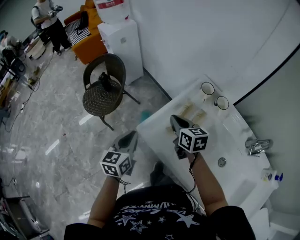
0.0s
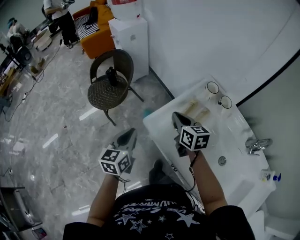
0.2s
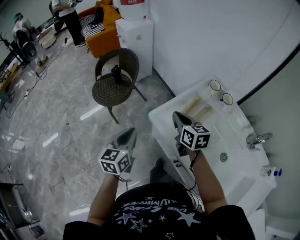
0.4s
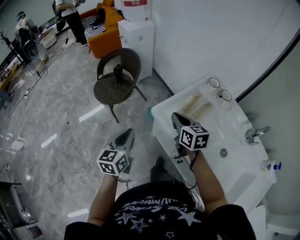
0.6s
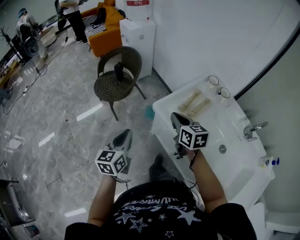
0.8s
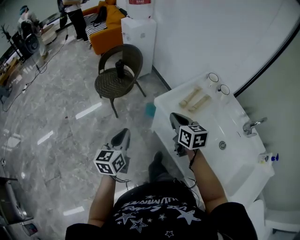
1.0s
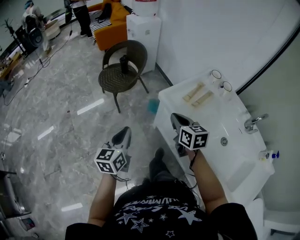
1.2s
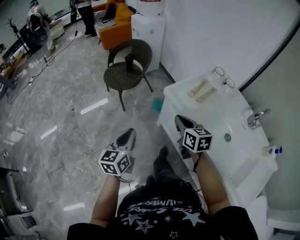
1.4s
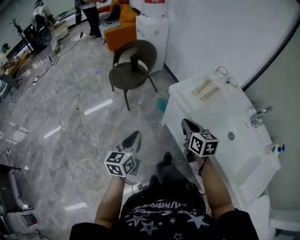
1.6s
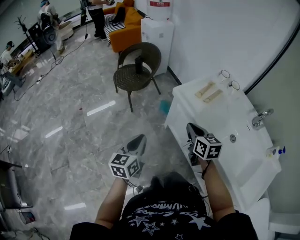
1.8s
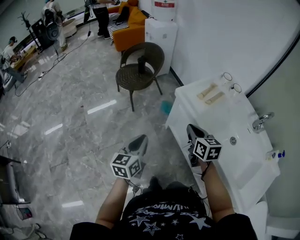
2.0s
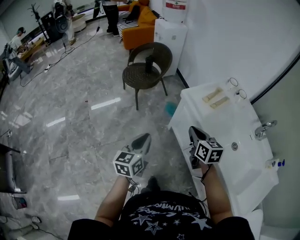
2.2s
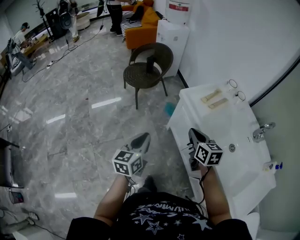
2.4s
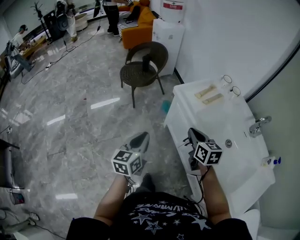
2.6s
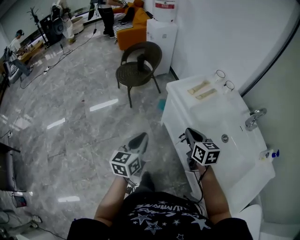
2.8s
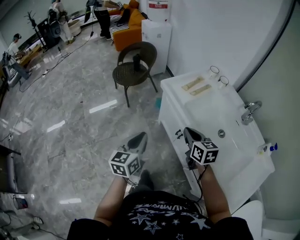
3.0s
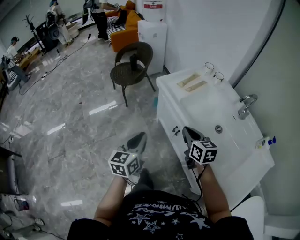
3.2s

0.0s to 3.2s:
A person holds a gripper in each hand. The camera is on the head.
0.0s to 1.6s: The grippers both shift backward and to the left by roughly 30 cm.
1.6s to 3.2s: The left gripper moves to the right and backward, approximately 20 cm; the right gripper heads backward and to the right, covering approximately 20 cm.

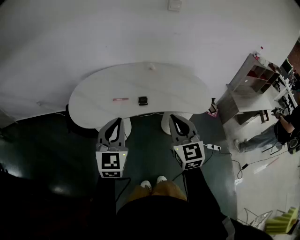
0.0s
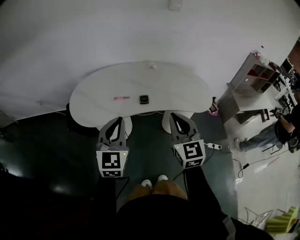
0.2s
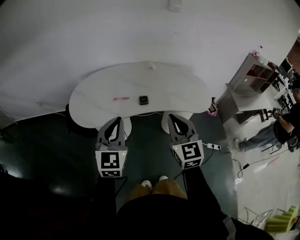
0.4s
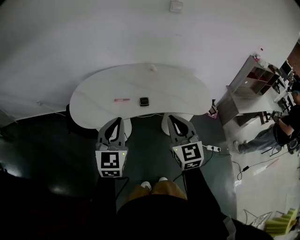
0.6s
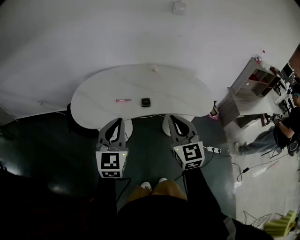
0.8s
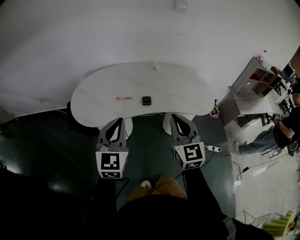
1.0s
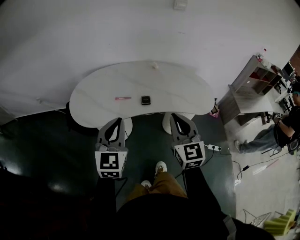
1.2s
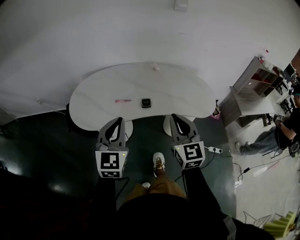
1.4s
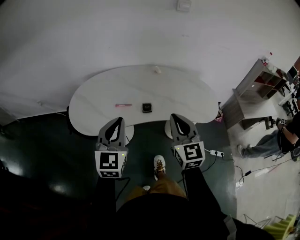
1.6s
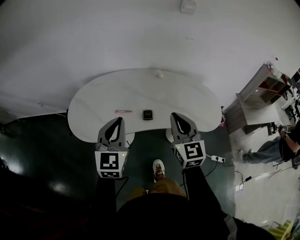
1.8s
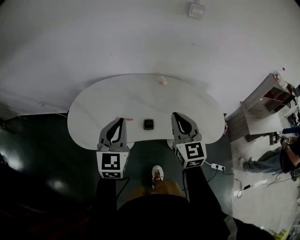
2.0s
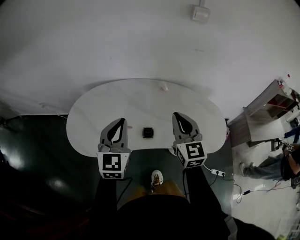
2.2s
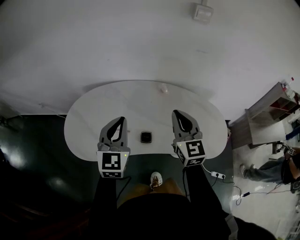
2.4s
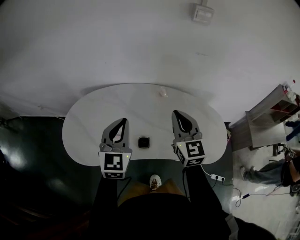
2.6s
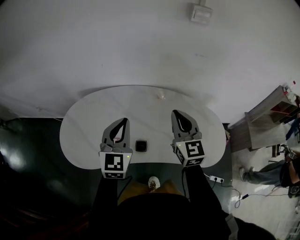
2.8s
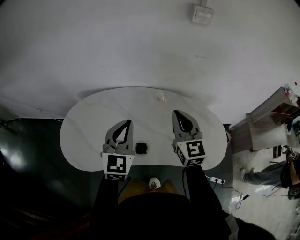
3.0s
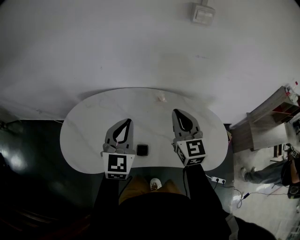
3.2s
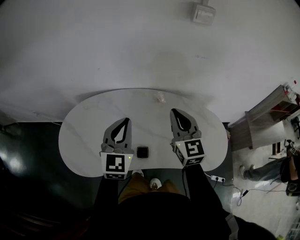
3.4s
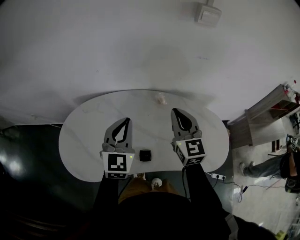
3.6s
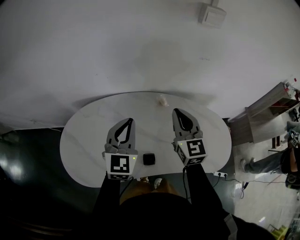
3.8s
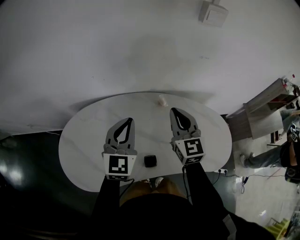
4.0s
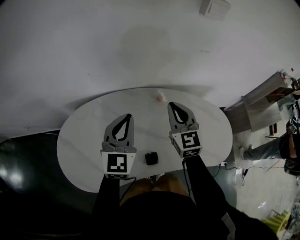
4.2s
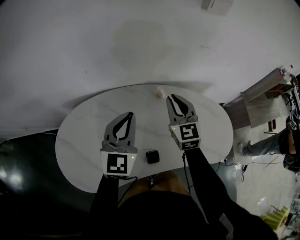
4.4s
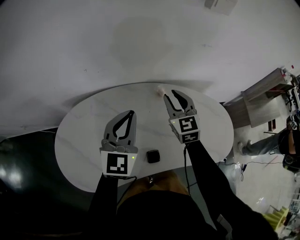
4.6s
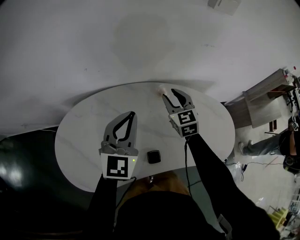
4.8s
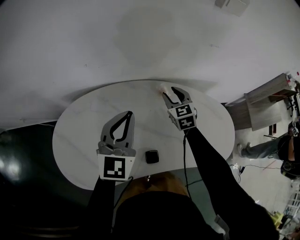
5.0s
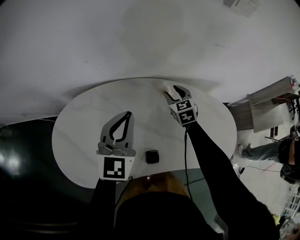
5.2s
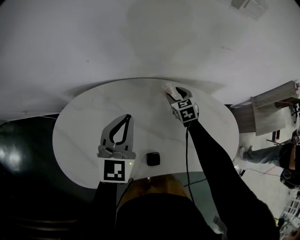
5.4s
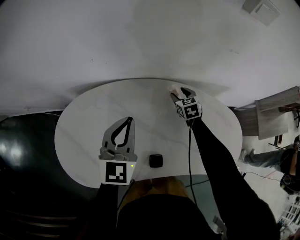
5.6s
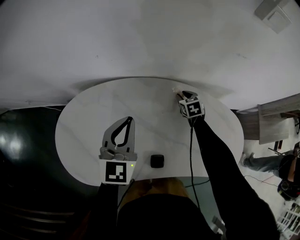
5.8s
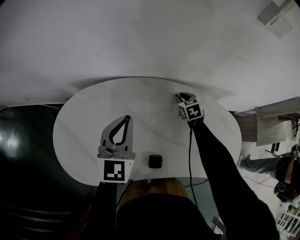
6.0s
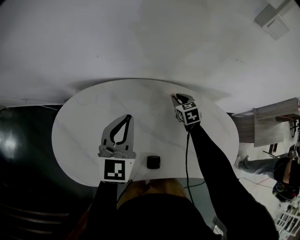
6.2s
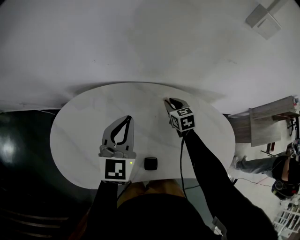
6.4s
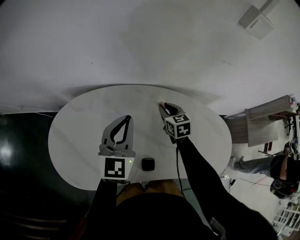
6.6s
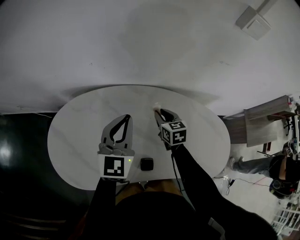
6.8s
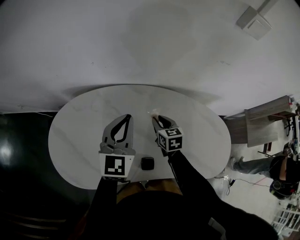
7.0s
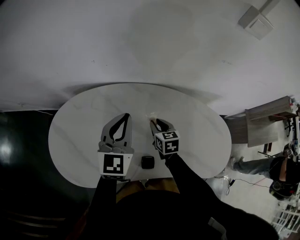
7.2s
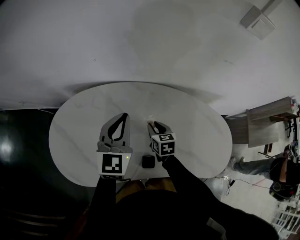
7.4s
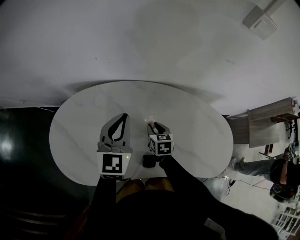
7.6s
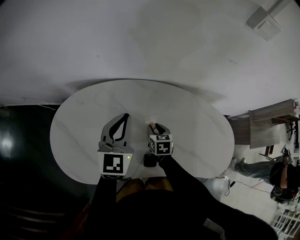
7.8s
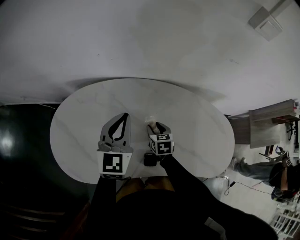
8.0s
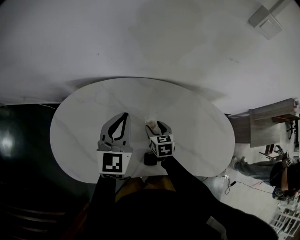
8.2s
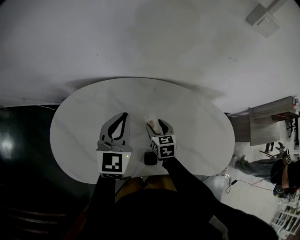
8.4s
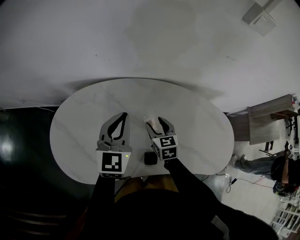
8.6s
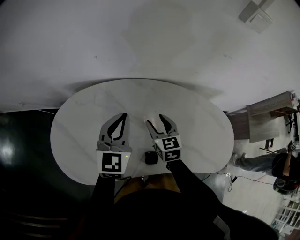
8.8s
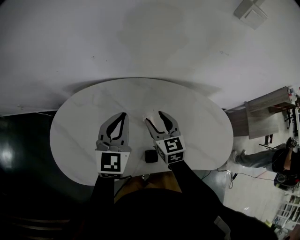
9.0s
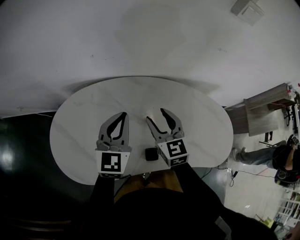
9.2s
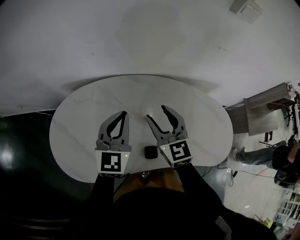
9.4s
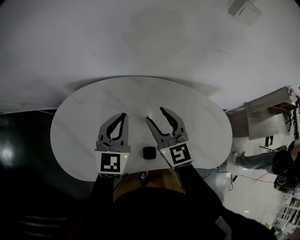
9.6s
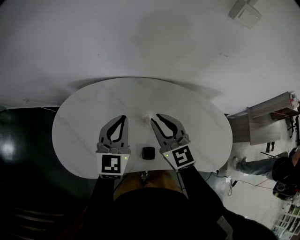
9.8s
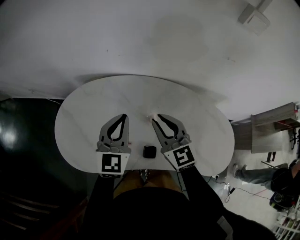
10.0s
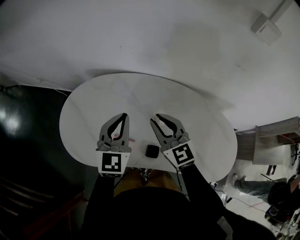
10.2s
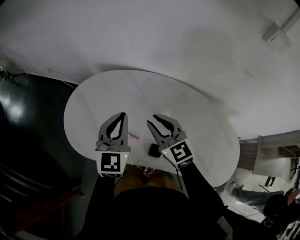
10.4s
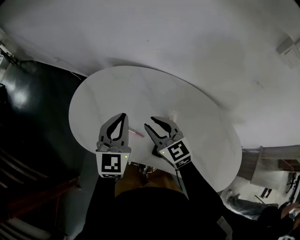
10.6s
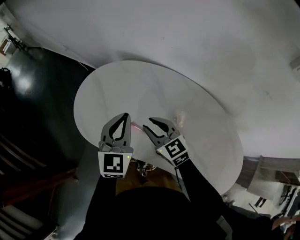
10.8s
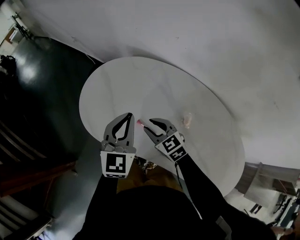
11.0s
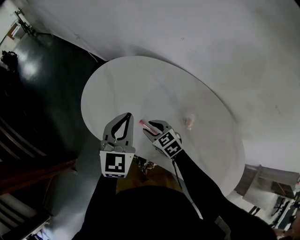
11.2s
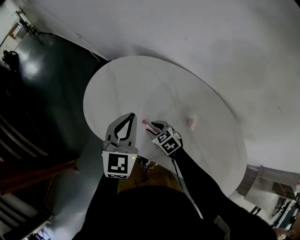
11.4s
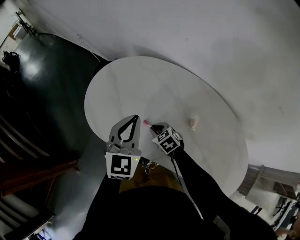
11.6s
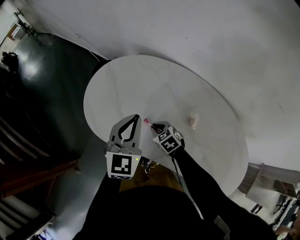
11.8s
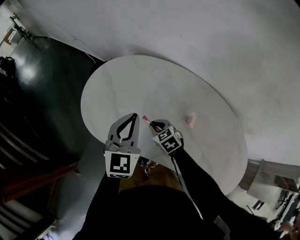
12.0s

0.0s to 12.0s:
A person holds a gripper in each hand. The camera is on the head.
0.0s to 1.6s: The two grippers go about 5 cm forward.
1.6s to 3.0s: Both grippers move forward, roughly 25 cm.
3.0s to 4.4s: The right gripper shifts approximately 15 cm forward, downward and to the left, while the left gripper travels forward by roughly 10 cm.
4.4s to 6.0s: The right gripper shifts about 30 cm downward and forward, points its fingers some 40 degrees further downward, and opens, then closes once more, while the left gripper is displaced downward and to the left by about 10 cm.
6.0s to 7.6s: The right gripper moves backward and to the left, roughly 20 cm.
7.6s to 9.0s: The right gripper shifts approximately 15 cm upward, and rotates some 20 degrees.
9.0s to 10.4s: The left gripper shifts by some 10 cm, and changes its angle by approximately 20 degrees. The right gripper shifts by roughly 10 cm, rotates about 40 degrees, and closes up.
10.4s to 12.0s: The right gripper travels downward and to the left by approximately 25 cm, and tips its fingers downward by roughly 30 degrees; the left gripper goes roughly 10 cm to the left.

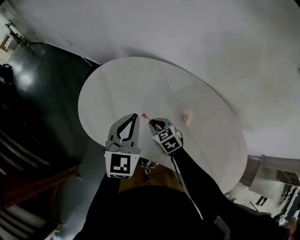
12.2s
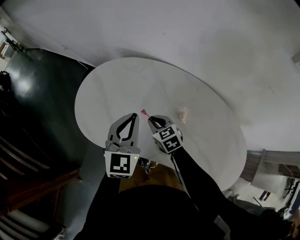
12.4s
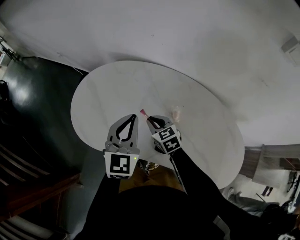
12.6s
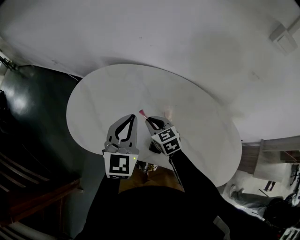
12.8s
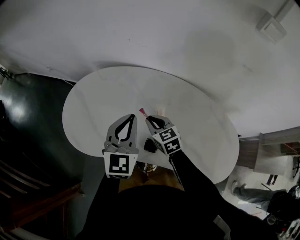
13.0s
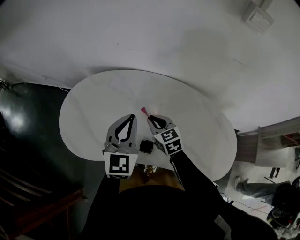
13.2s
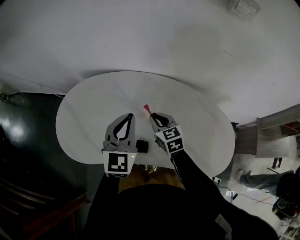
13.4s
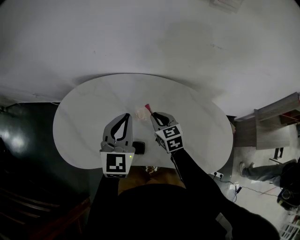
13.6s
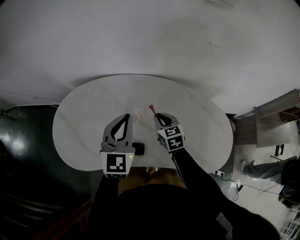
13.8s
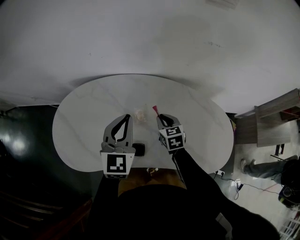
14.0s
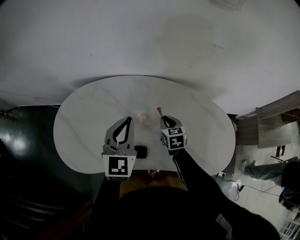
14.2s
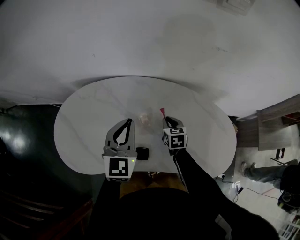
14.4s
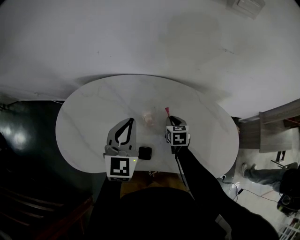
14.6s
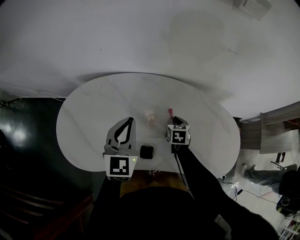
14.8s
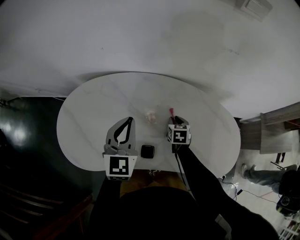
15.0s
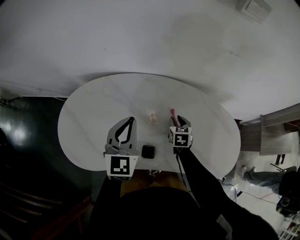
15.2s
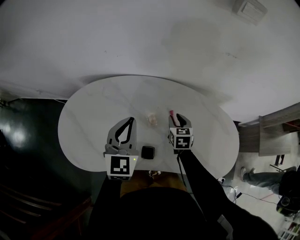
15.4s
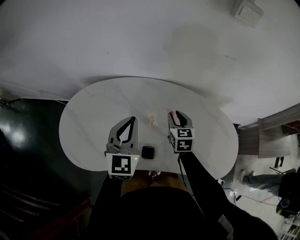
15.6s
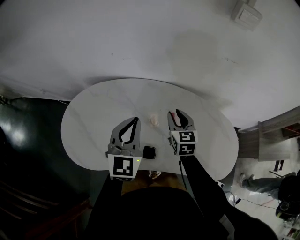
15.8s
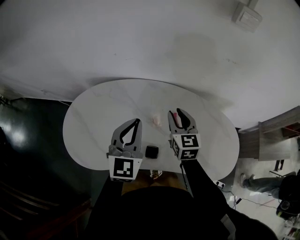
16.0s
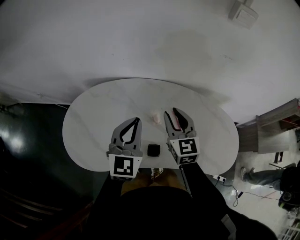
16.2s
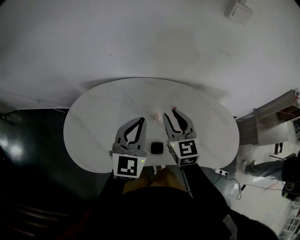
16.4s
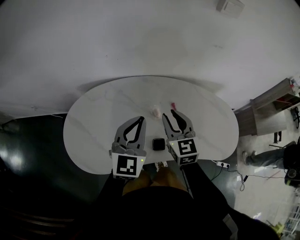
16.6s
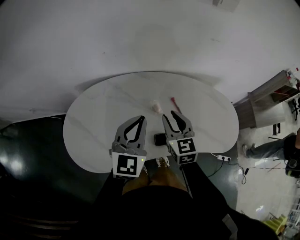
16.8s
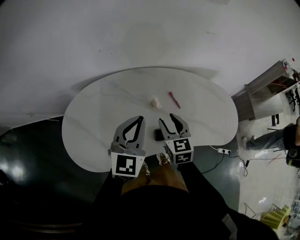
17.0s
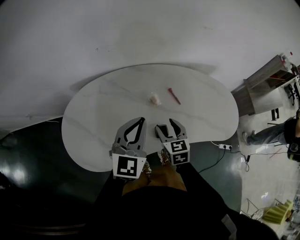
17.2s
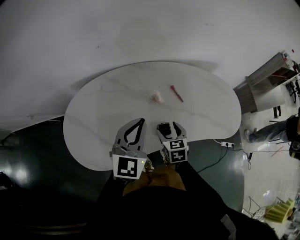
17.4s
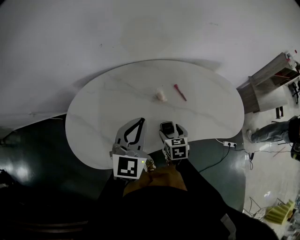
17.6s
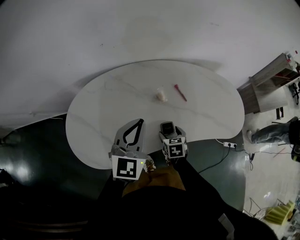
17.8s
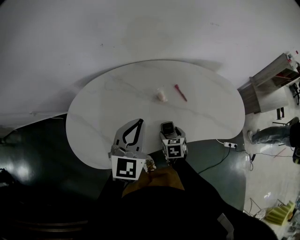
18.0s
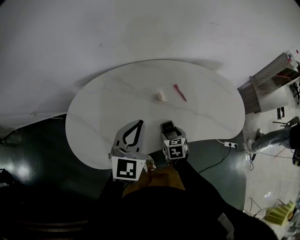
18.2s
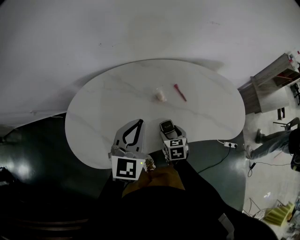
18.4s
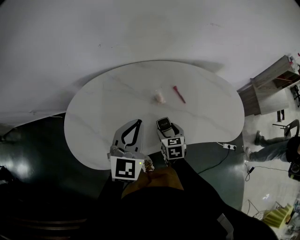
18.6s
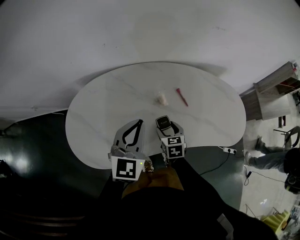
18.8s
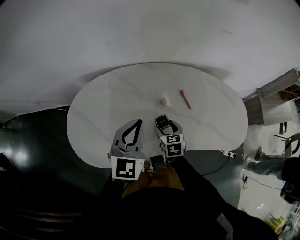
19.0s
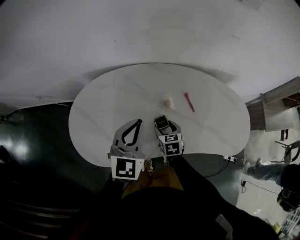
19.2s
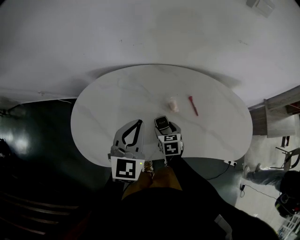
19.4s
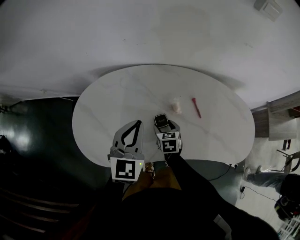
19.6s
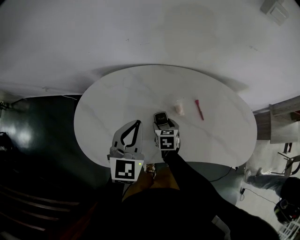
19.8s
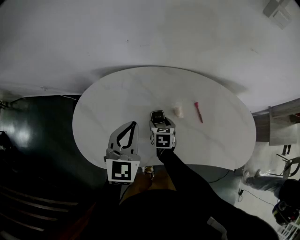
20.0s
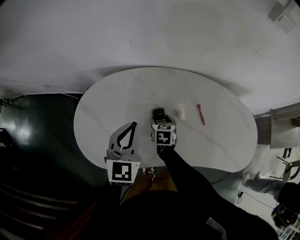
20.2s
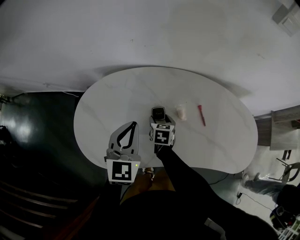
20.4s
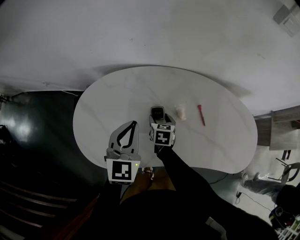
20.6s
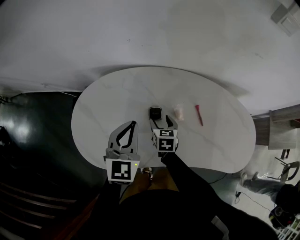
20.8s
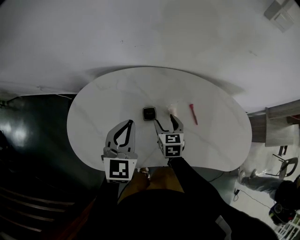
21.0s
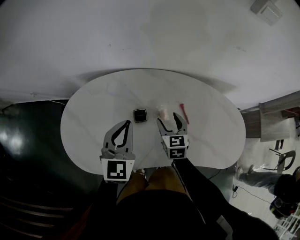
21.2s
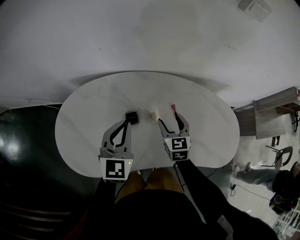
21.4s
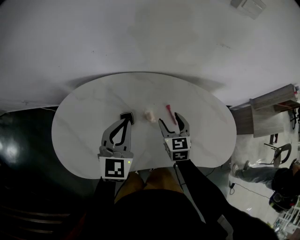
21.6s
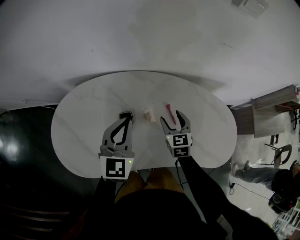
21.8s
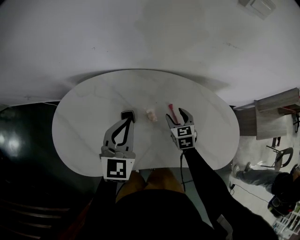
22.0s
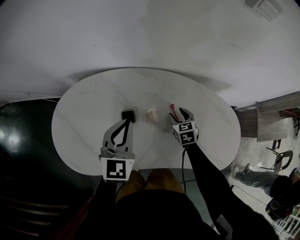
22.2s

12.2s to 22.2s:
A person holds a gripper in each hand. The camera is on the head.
12.2s to 13.6s: The left gripper ends up roughly 20 cm from where it was, and changes its angle by approximately 20 degrees, while the right gripper moves roughly 25 cm, and rotates approximately 40 degrees.
13.6s to 15.0s: The left gripper shifts by some 5 cm, while the right gripper is displaced downward and to the right by some 15 cm, and turns by approximately 30 degrees.
15.0s to 16.4s: The left gripper shifts by approximately 5 cm, while the right gripper heads upward, covering about 25 cm, and tilts its fingers some 40 degrees upward.
16.4s to 18.0s: The right gripper shifts some 30 cm downward and backward, tips its fingers downward by about 40 degrees, and opens its fingers. The left gripper is displaced backward by approximately 5 cm.
18.0s to 19.4s: The right gripper moves forward and to the left, approximately 10 cm.
19.4s to 20.8s: The left gripper moves about 5 cm. Meanwhile the right gripper moves forward, about 5 cm.
20.8s to 22.2s: The left gripper is displaced to the right by approximately 10 cm, while the right gripper moves to the right, some 20 cm.
